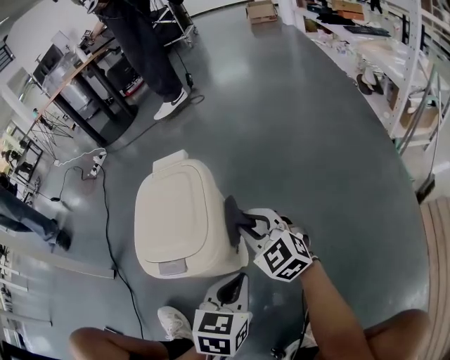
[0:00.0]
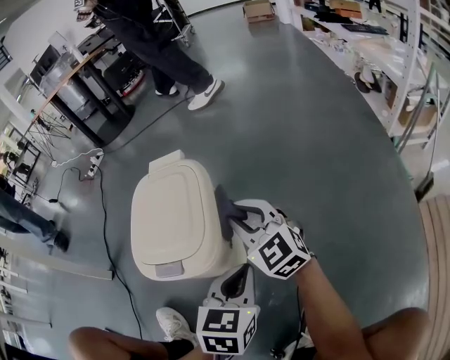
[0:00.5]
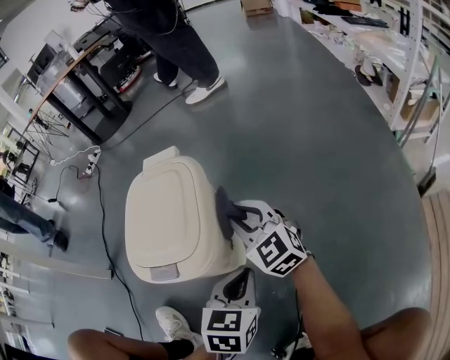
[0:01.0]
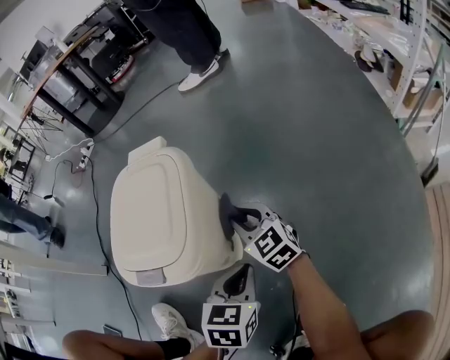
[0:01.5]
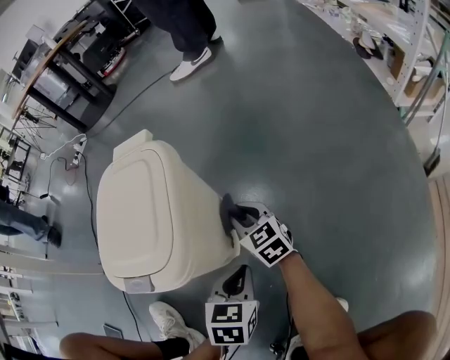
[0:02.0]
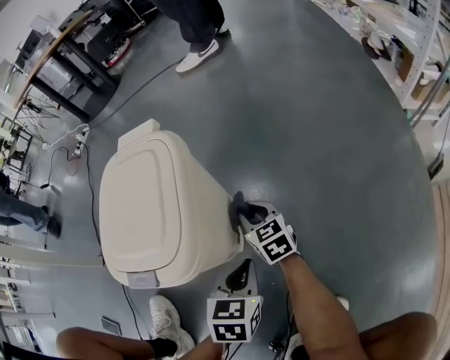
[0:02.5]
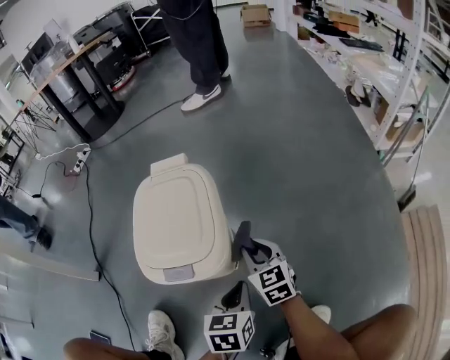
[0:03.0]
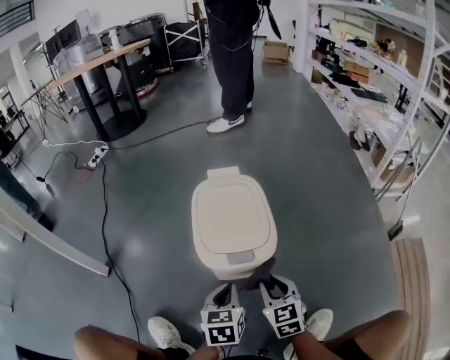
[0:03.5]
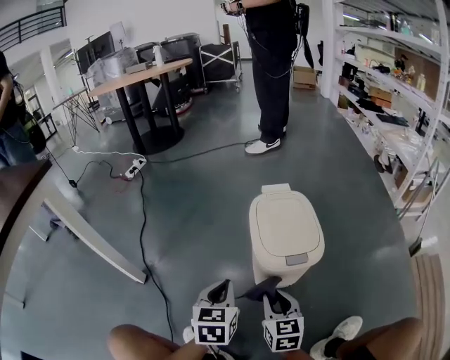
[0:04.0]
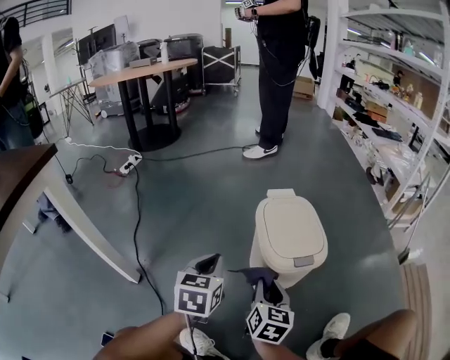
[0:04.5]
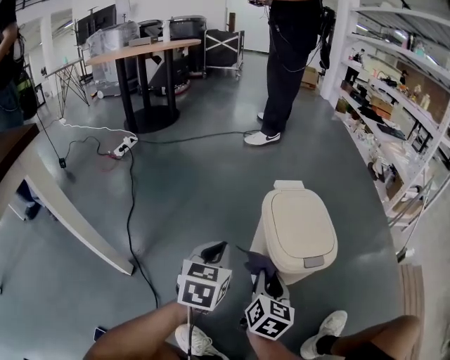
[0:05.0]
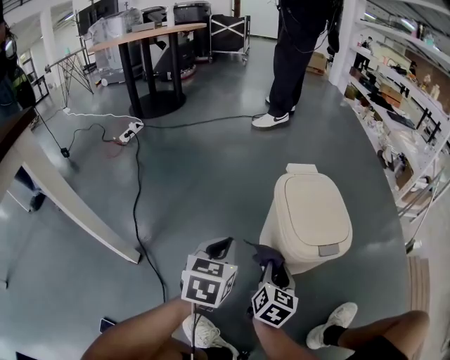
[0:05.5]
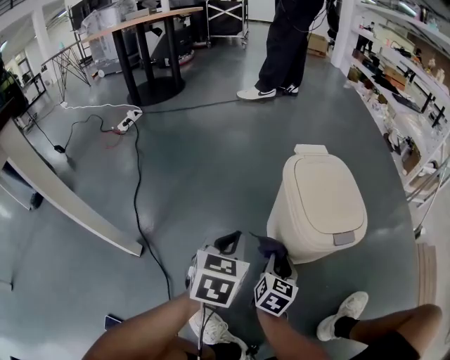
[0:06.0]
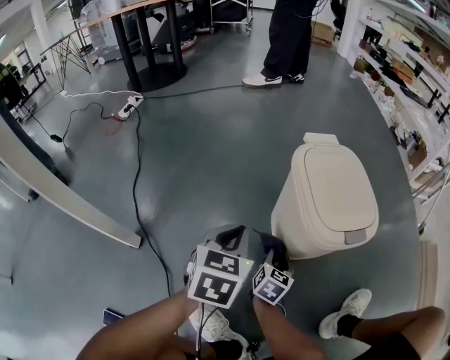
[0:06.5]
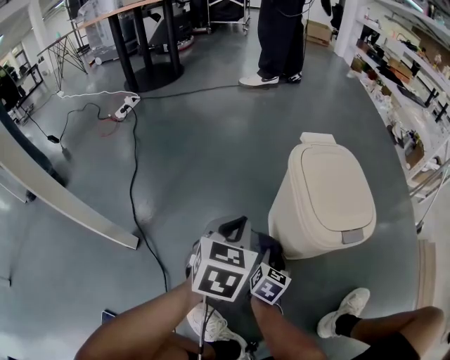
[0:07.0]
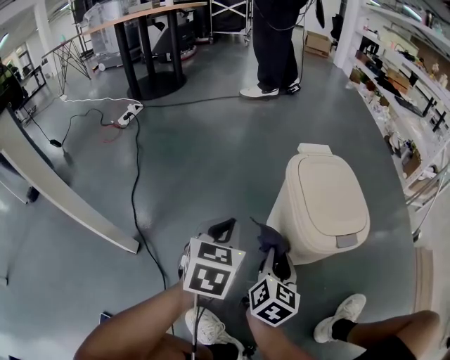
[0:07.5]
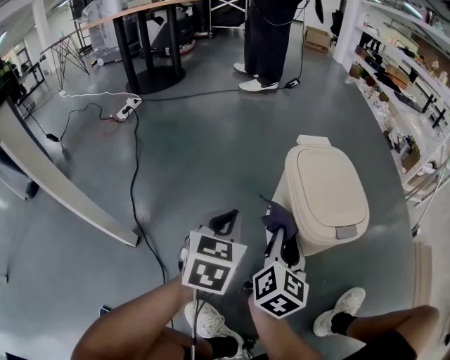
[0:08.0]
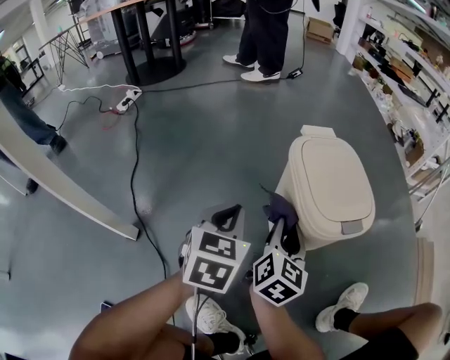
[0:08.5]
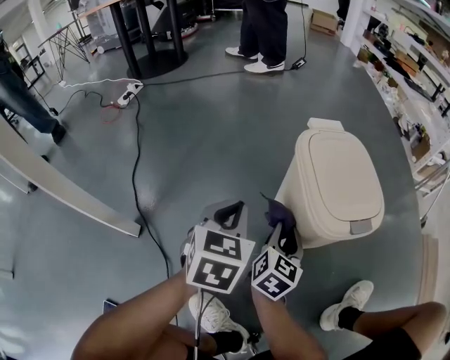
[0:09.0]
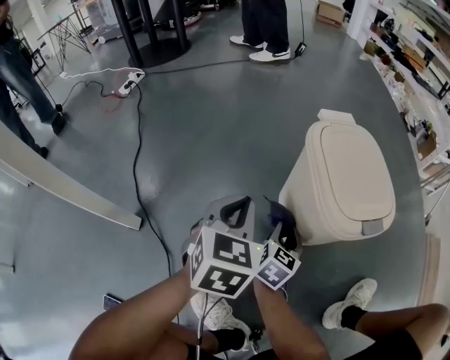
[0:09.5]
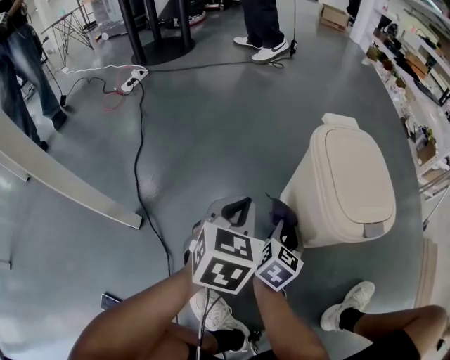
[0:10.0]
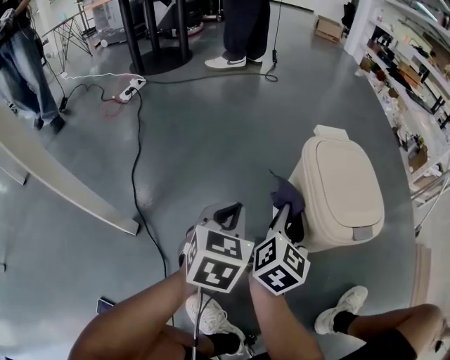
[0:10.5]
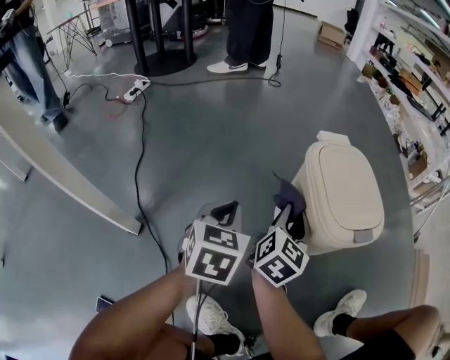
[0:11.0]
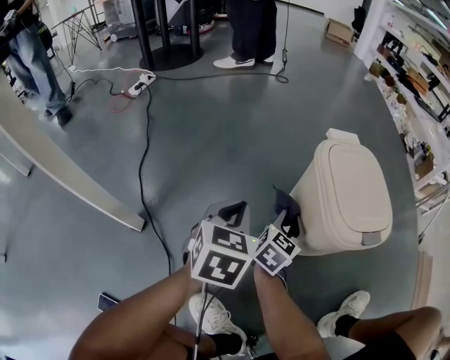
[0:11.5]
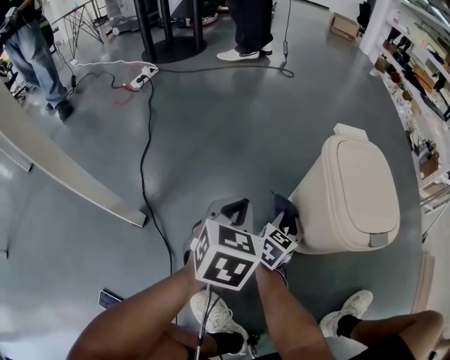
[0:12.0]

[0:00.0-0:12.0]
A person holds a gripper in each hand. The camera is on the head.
0:00.0 to 0:02.0: The two grippers go some 15 cm downward. The right gripper swivels approximately 30 degrees.
0:02.0 to 0:04.0: The right gripper heads backward, to the left and upward, covering roughly 35 cm, and changes its angle by roughly 20 degrees. The left gripper is displaced to the left and upward by some 40 cm, and turns by about 20 degrees.
0:04.0 to 0:06.0: The left gripper moves to the left and forward, some 10 cm, while the right gripper heads downward, forward and to the left, covering about 15 cm, and rotates about 30 degrees.
0:06.0 to 0:08.0: The right gripper travels upward by some 15 cm.
0:08.0 to 0:10.0: The right gripper shifts approximately 15 cm downward.
0:10.0 to 0:12.0: The right gripper moves approximately 15 cm upward and comes back.

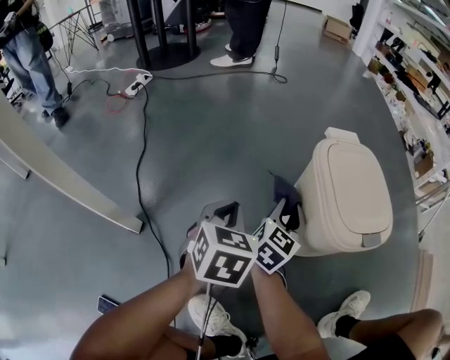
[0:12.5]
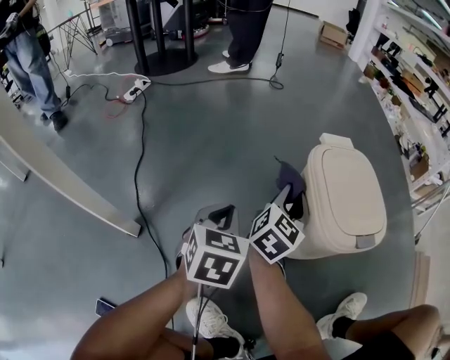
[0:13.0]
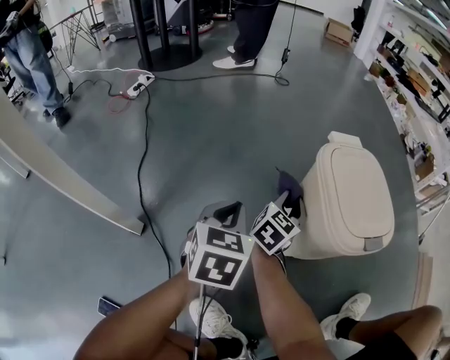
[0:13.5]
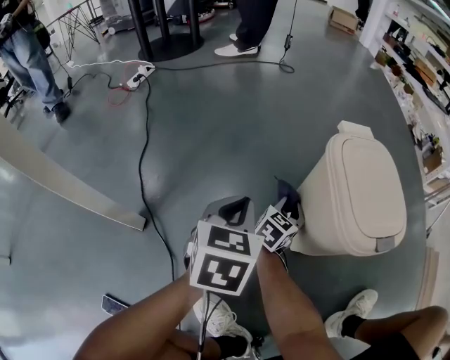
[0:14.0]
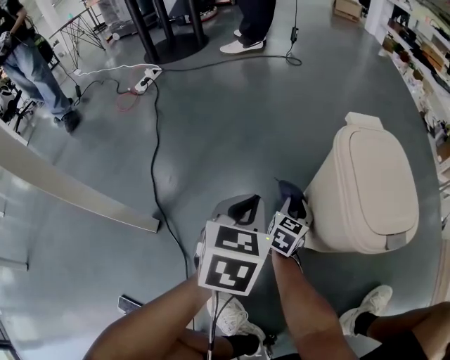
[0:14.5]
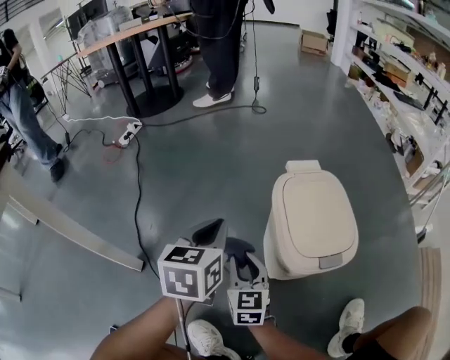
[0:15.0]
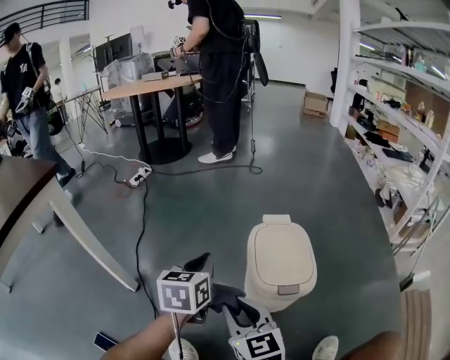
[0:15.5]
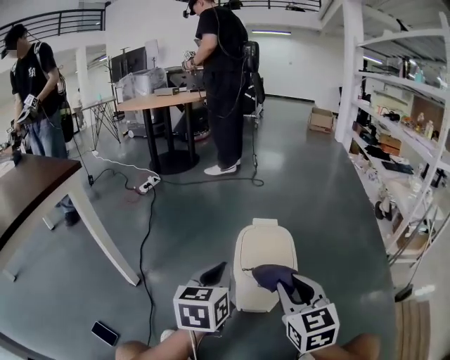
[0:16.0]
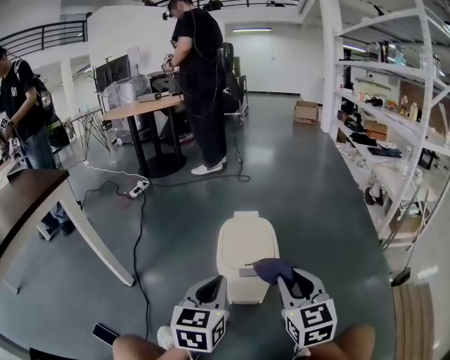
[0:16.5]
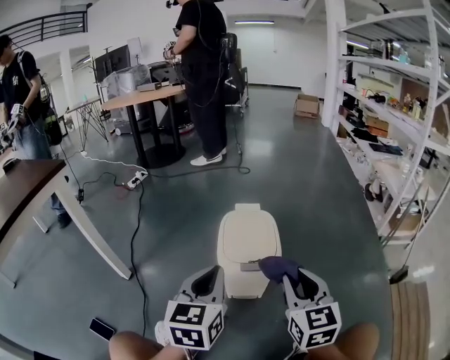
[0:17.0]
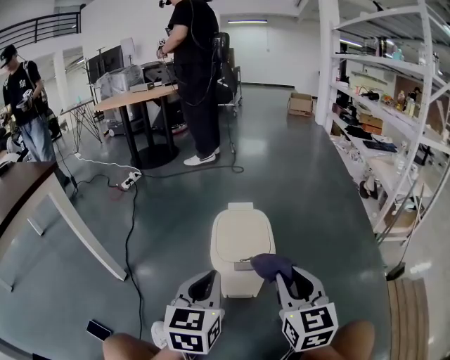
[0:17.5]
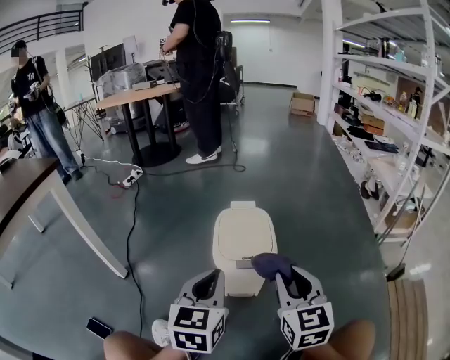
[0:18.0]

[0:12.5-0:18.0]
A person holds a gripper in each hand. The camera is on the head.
0:12.5 to 0:14.5: The right gripper shifts some 15 cm downward.
0:14.5 to 0:16.0: The left gripper moves upward, approximately 25 cm, and swivels about 20 degrees; the right gripper heads upward, covering approximately 40 cm, and swivels roughly 40 degrees.
0:16.0 to 0:18.0: The right gripper is displaced to the right by about 5 cm, while the left gripper shifts about 10 cm backward and to the right.

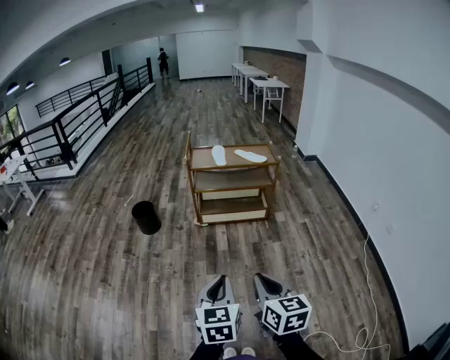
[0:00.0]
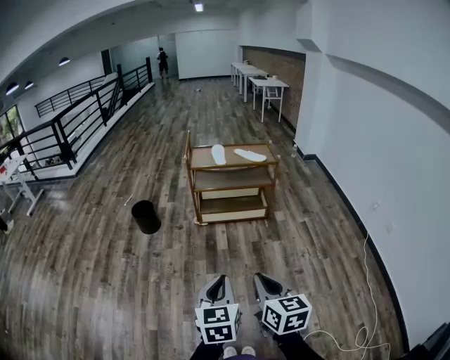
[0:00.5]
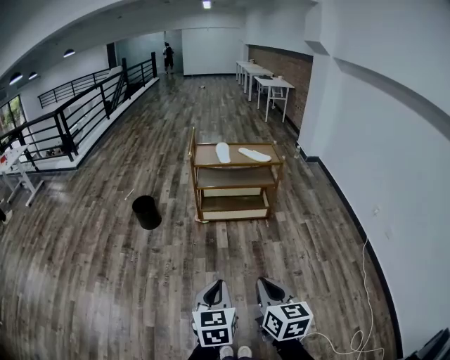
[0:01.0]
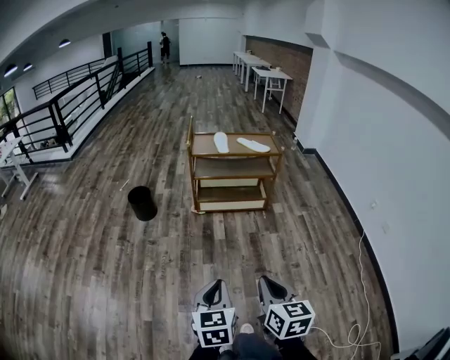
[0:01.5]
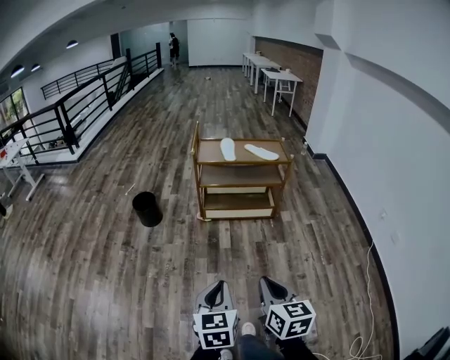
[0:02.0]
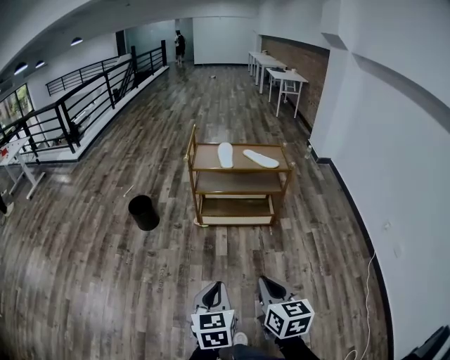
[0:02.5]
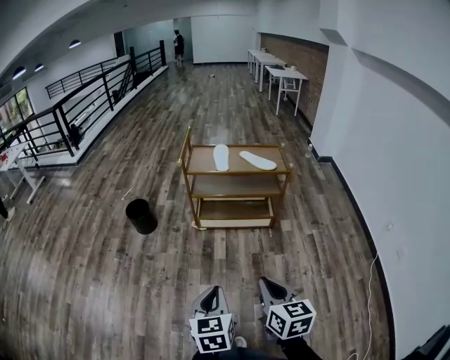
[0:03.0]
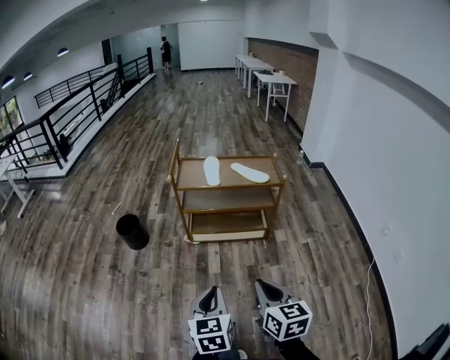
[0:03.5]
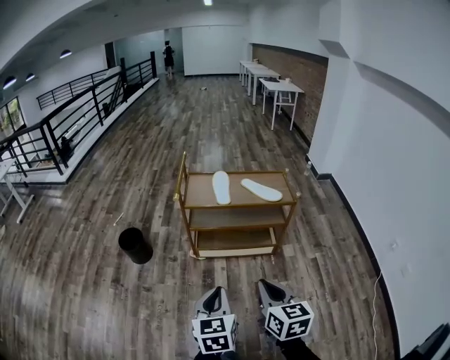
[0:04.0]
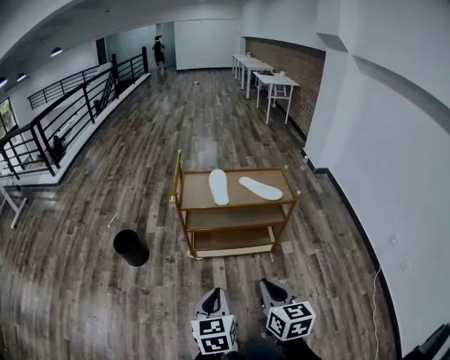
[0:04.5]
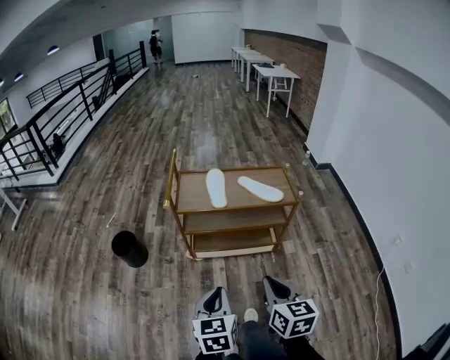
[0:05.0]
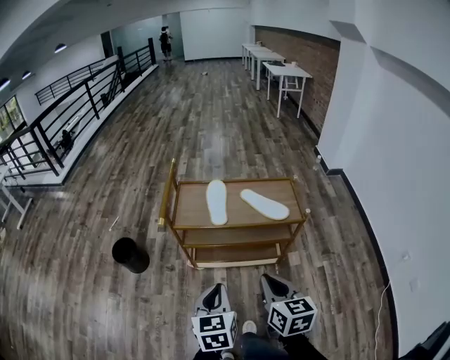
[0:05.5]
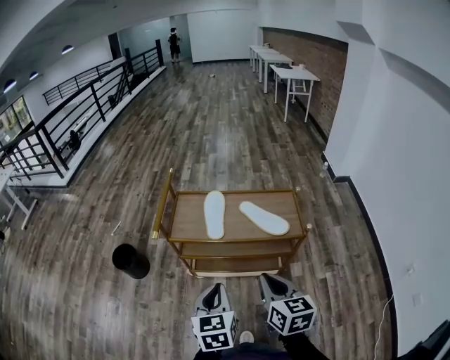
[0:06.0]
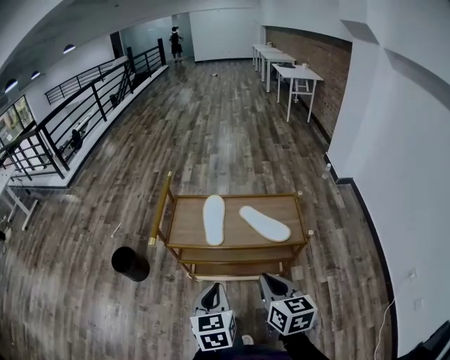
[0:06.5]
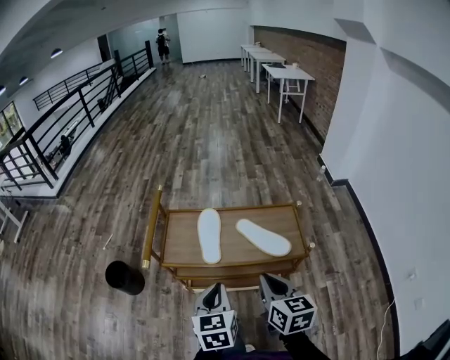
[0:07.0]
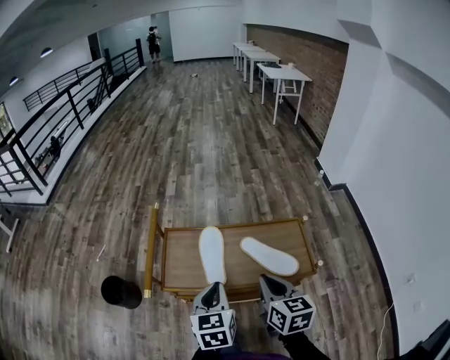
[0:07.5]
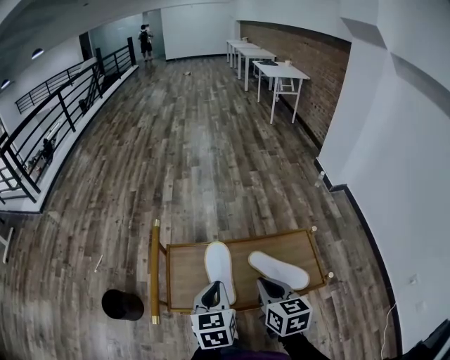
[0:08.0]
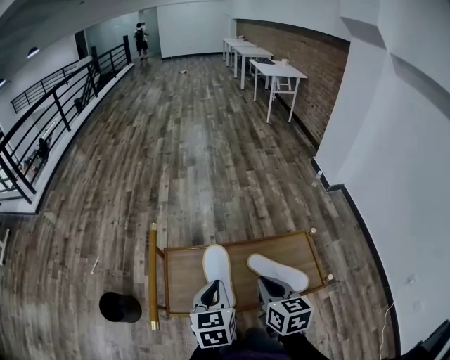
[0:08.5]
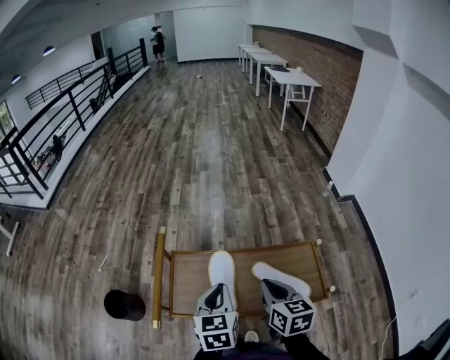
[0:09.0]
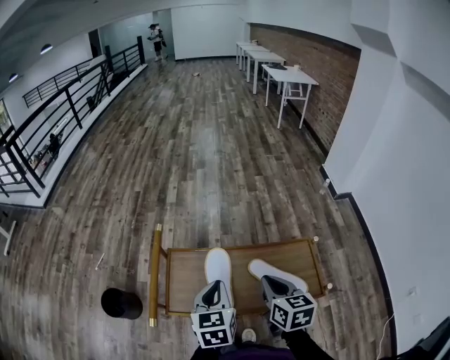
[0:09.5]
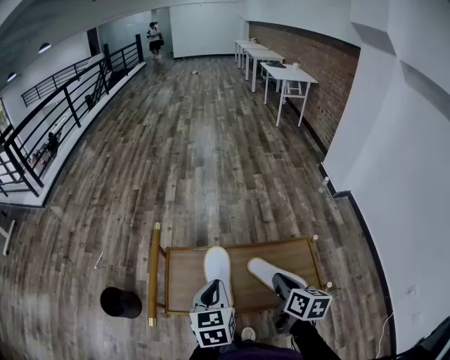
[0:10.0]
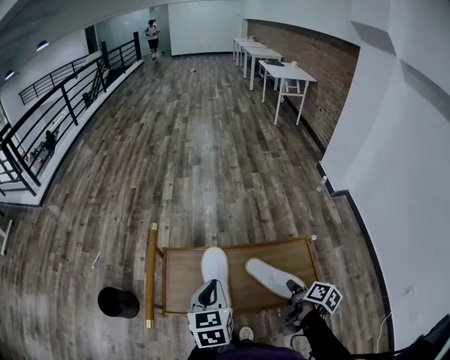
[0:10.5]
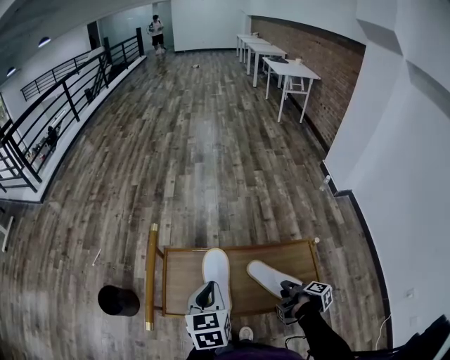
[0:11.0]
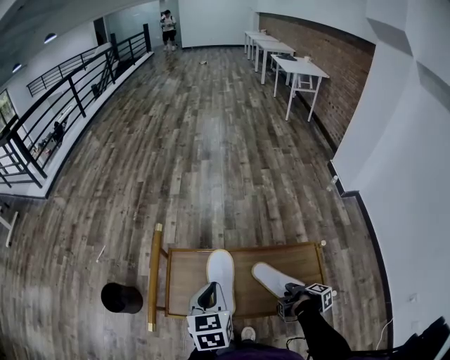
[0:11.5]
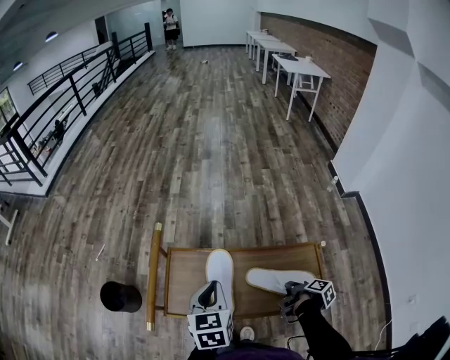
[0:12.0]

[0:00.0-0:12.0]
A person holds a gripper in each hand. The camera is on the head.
0:00.0 to 0:02.0: Both grippers travel together forward, about 5 cm.
0:02.0 to 0:04.0: Both grippers move forward, approximately 30 cm.
0:04.0 to 0:06.0: Both grippers move forward, some 25 cm.
0:06.0 to 0:08.0: Both grippers travel together forward, about 30 cm.
0:08.0 to 0:10.0: The right gripper moves to the right, roughly 5 cm, and turns by roughly 20 degrees.
0:10.0 to 0:12.0: The right gripper is displaced downward and to the right by some 20 cm, twists roughly 60 degrees clockwise, seen from behind, and opens and closes again.
